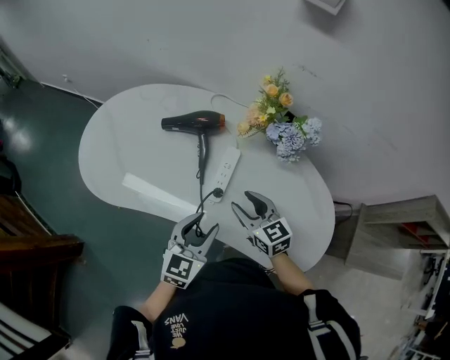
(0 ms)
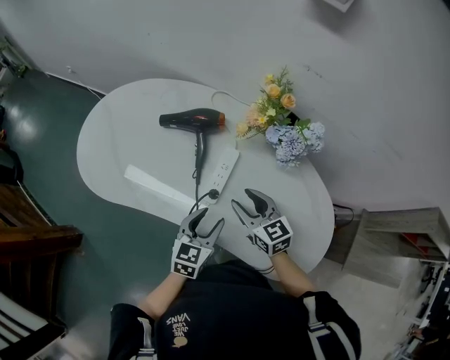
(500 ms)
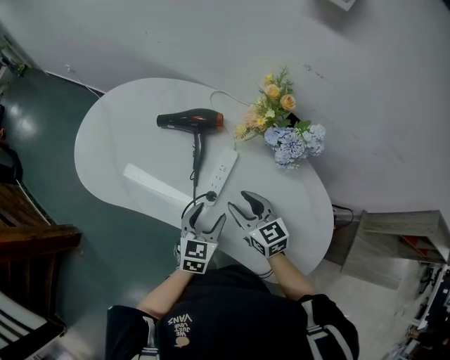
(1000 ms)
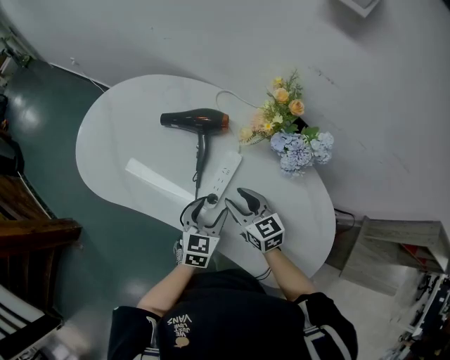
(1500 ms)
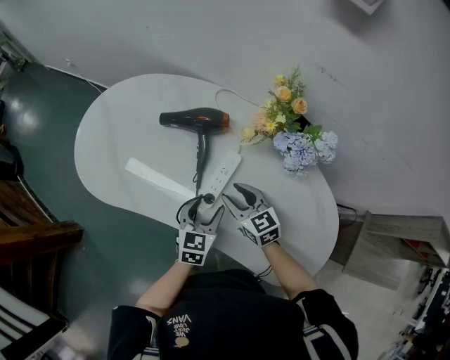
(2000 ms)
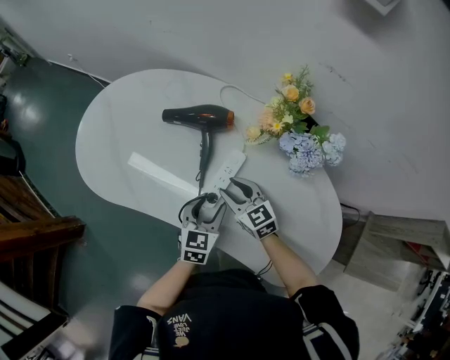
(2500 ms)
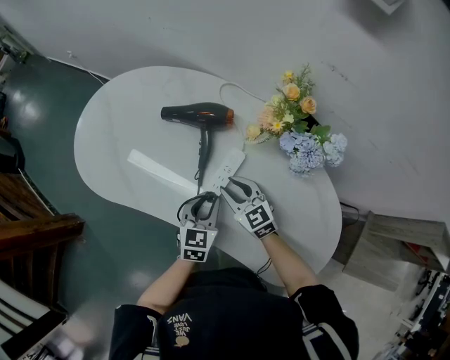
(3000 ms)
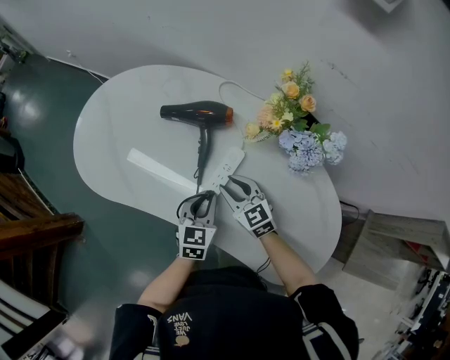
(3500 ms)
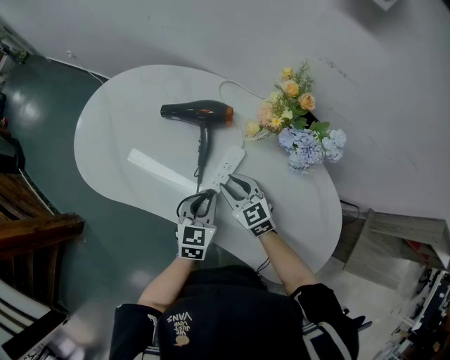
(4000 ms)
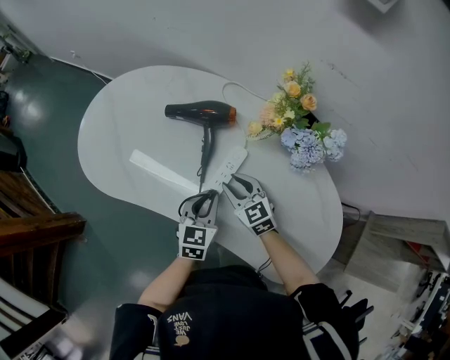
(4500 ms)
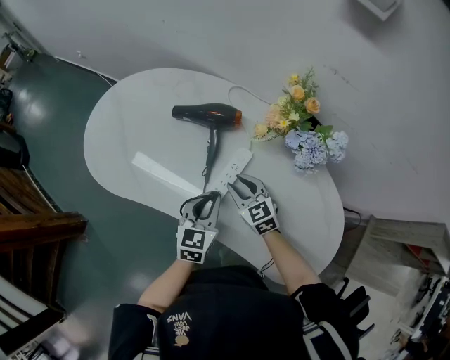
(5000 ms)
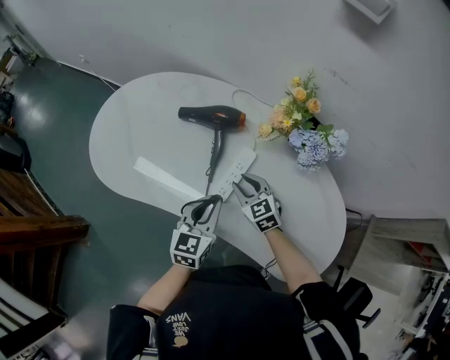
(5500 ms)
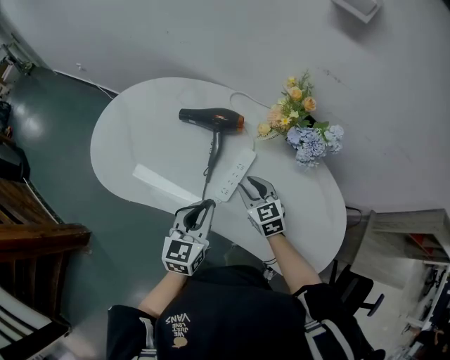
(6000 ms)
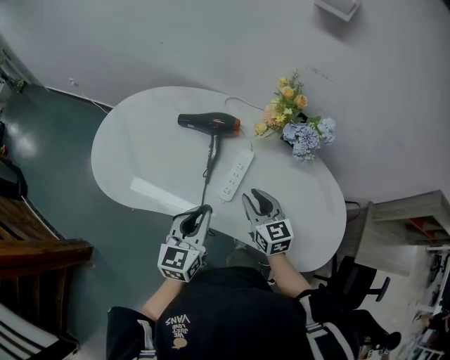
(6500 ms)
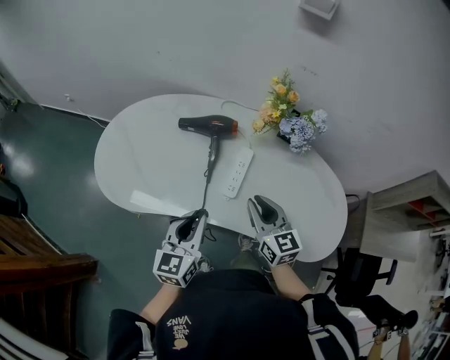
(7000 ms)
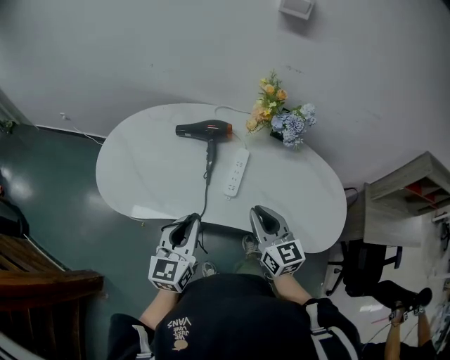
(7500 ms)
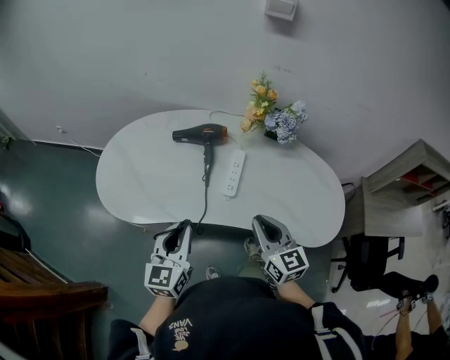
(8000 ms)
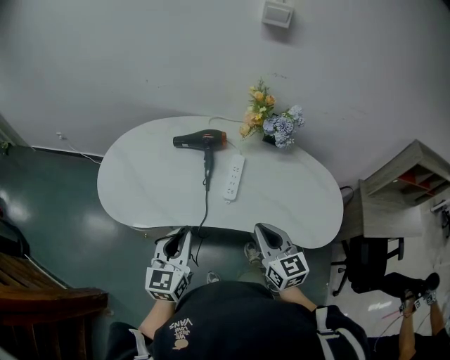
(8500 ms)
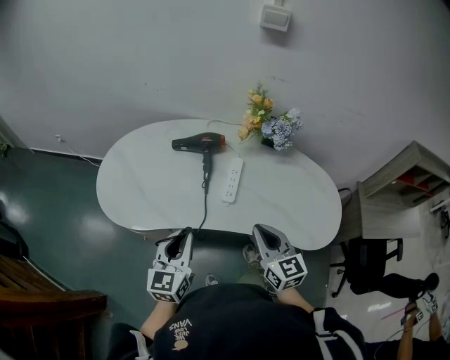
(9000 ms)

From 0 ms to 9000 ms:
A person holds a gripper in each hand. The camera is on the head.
From 0 ms to 2000 ms: The right gripper travels forward and downward by some 10 cm. Meanwhile the left gripper is displaced downward and forward by some 15 cm, and opens its fingers.
From 2000 ms to 4500 ms: The left gripper closes.
From 4500 ms to 7000 ms: The left gripper is displaced upward, to the left and backward by roughly 20 cm, and turns by roughly 20 degrees. Meanwhile the right gripper goes some 20 cm upward and backward, and swivels approximately 30 degrees.
From 7000 ms to 9000 ms: The left gripper is displaced backward and to the left by some 10 cm. The right gripper is displaced backward by some 10 cm.

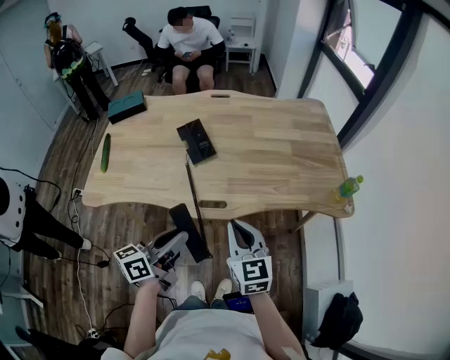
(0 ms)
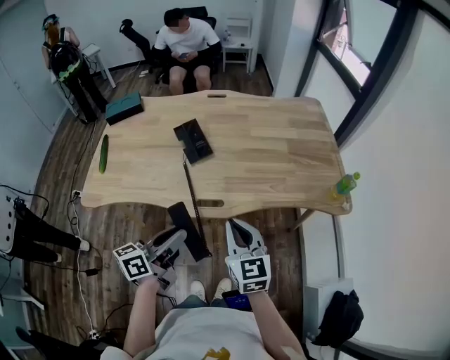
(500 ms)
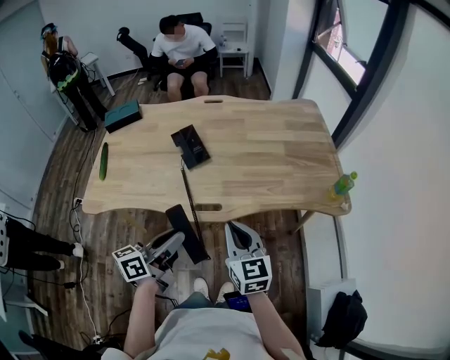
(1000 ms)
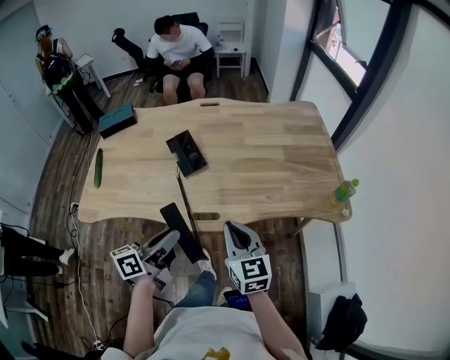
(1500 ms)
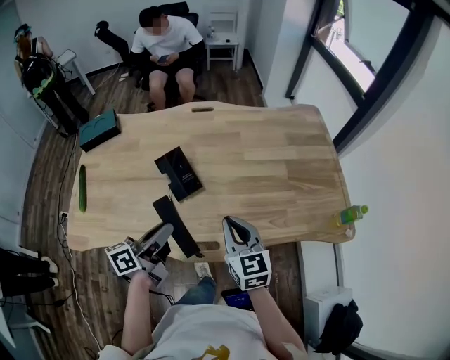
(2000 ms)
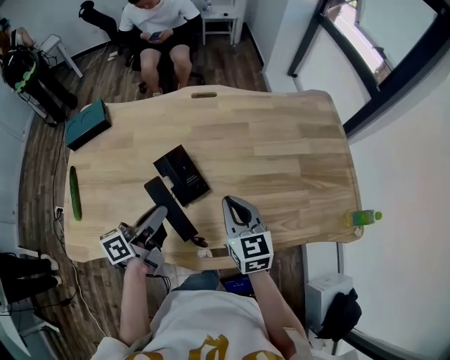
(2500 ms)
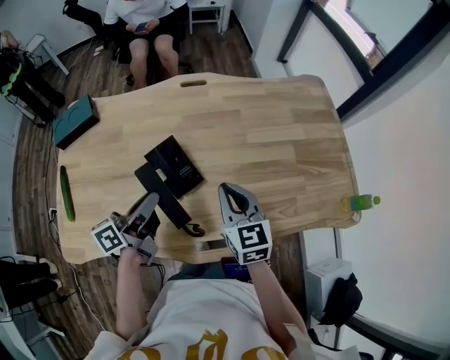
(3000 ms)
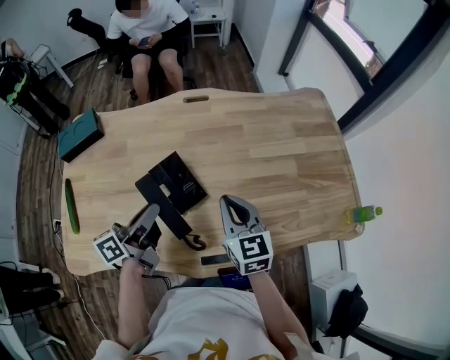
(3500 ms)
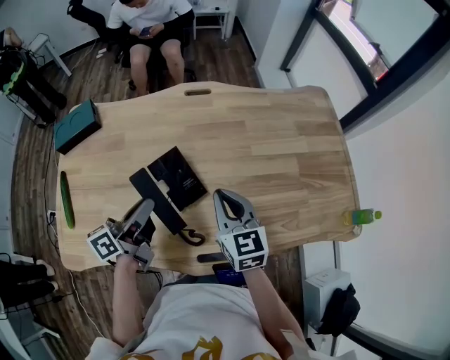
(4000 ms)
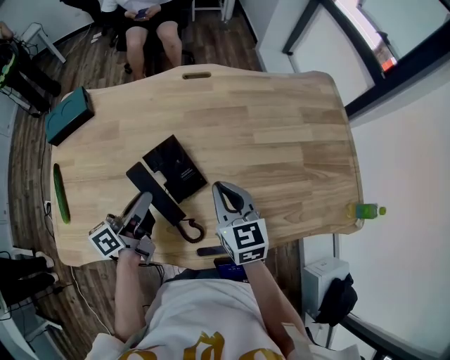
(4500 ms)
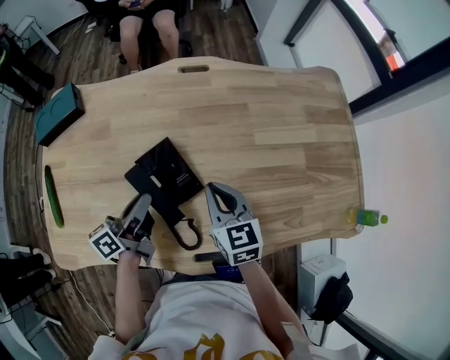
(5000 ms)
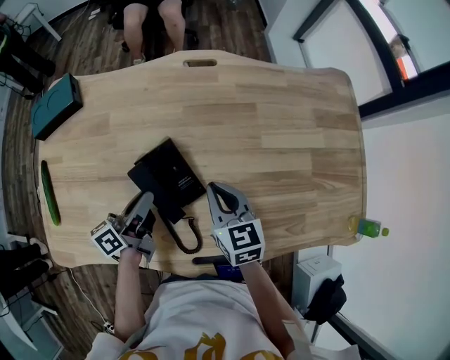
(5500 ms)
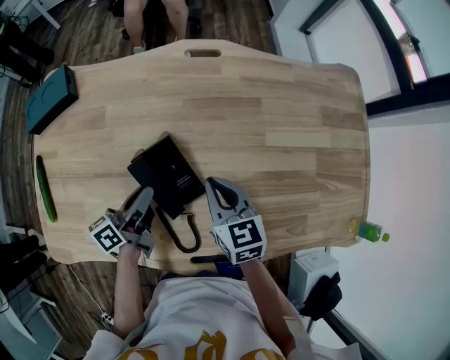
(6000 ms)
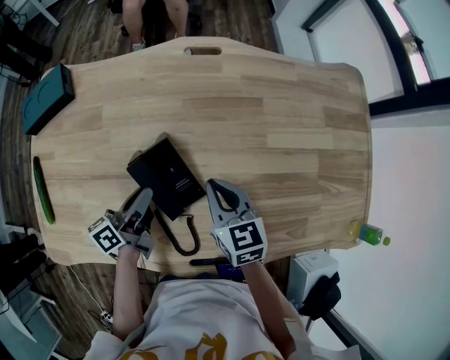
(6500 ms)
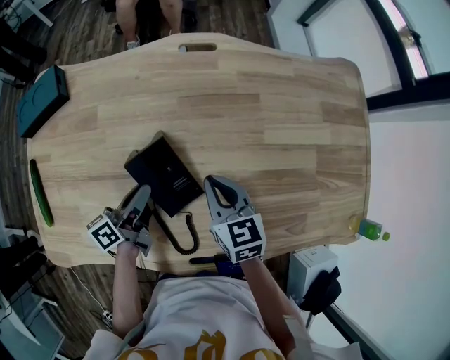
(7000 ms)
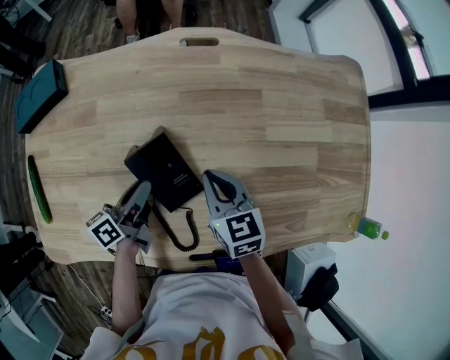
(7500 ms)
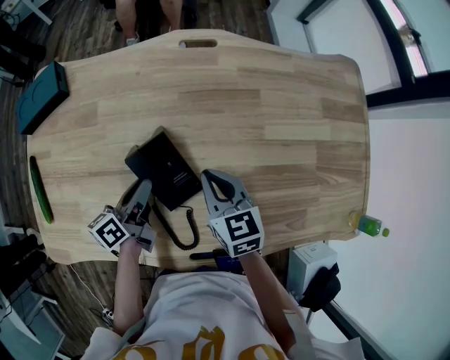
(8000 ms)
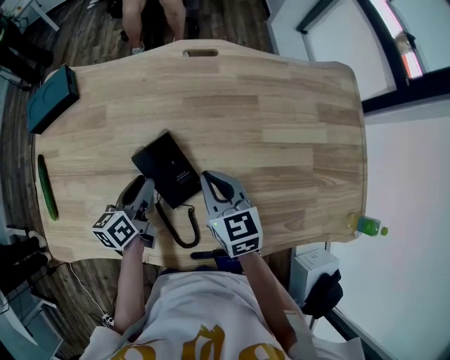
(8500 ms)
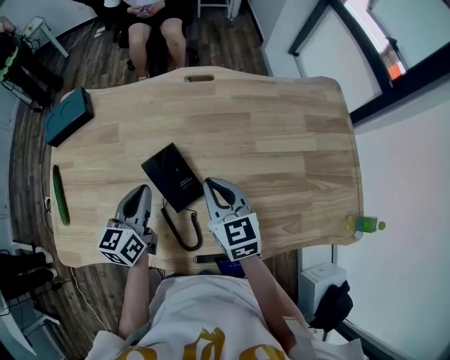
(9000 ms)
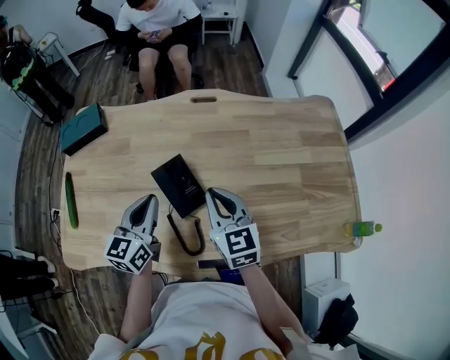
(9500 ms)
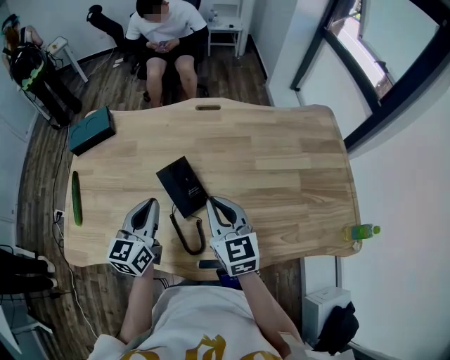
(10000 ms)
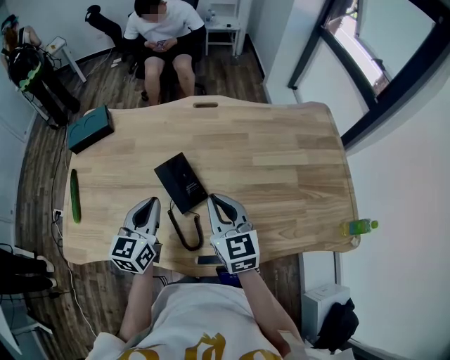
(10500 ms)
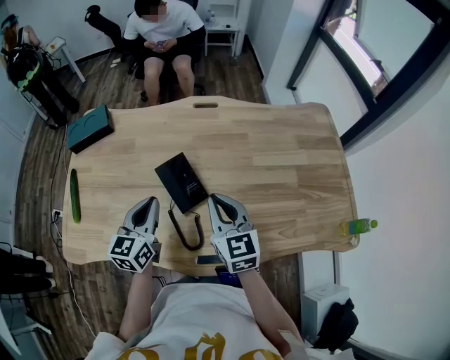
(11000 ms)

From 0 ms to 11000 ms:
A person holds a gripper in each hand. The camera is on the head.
From 0 ms to 2000 ms: The grippers both shift forward by approximately 20 cm.
From 2000 ms to 3500 ms: The two grippers go some 15 cm forward and to the left.
From 3500 ms to 5500 ms: The two grippers go some 10 cm downward and forward.
From 5500 ms to 7500 ms: The left gripper ends up roughly 5 cm from where it was.
From 7500 ms to 9000 ms: The grippers both shift upward by roughly 10 cm. The left gripper swivels about 40 degrees.
From 9000 ms to 11000 ms: The left gripper shifts some 5 cm backward, while the right gripper goes approximately 10 cm backward and upward.

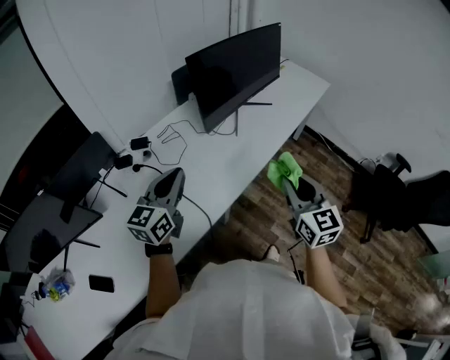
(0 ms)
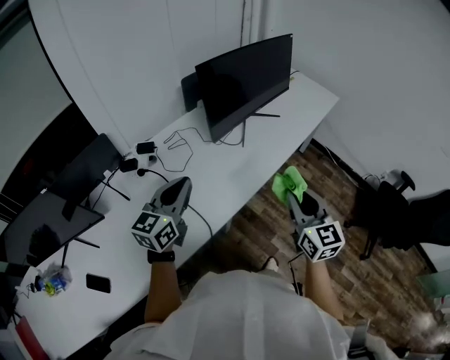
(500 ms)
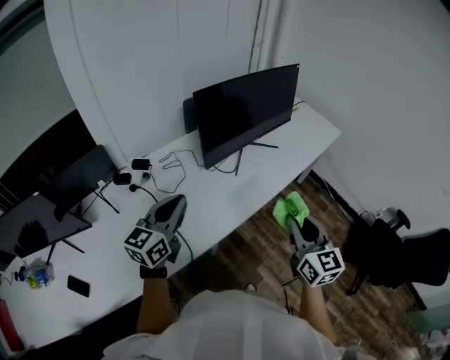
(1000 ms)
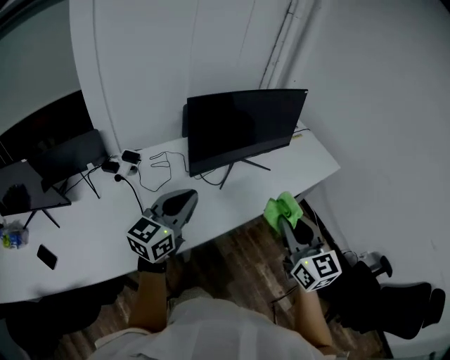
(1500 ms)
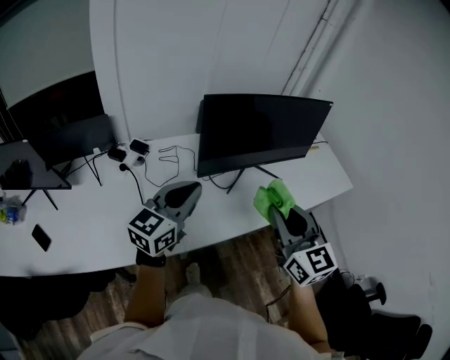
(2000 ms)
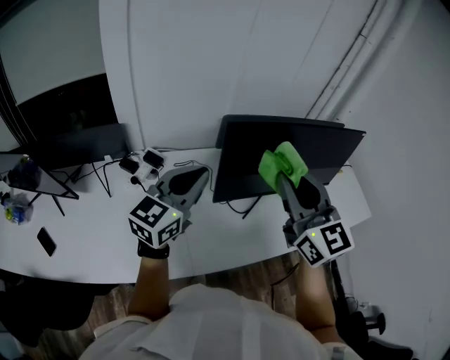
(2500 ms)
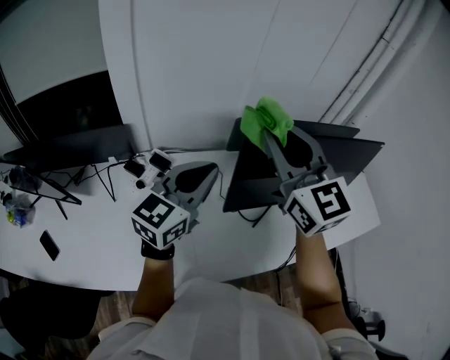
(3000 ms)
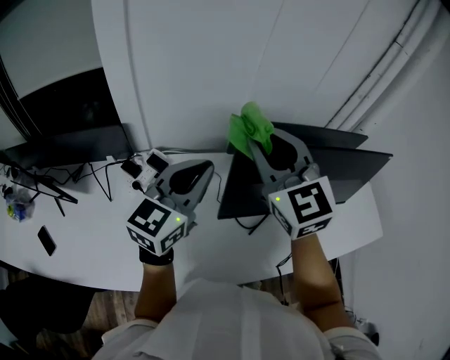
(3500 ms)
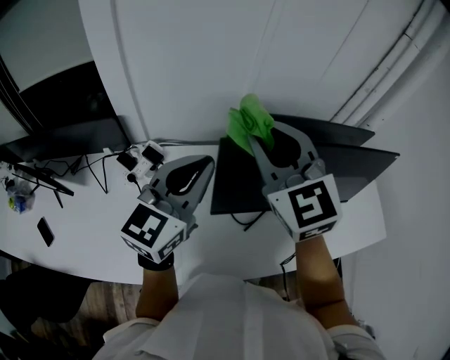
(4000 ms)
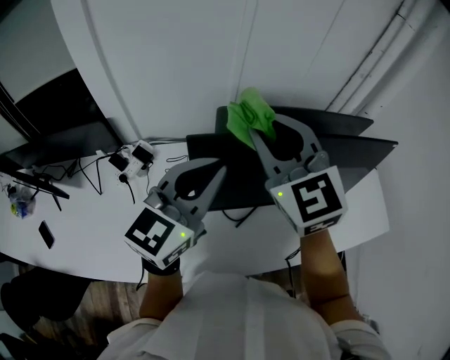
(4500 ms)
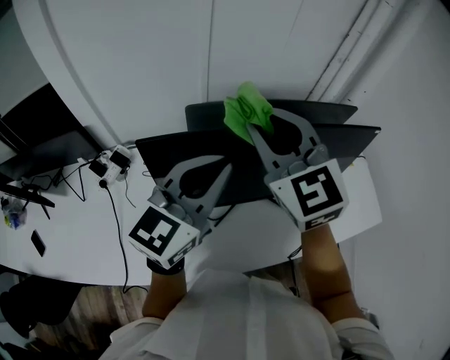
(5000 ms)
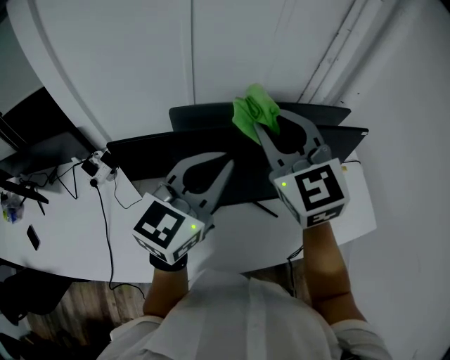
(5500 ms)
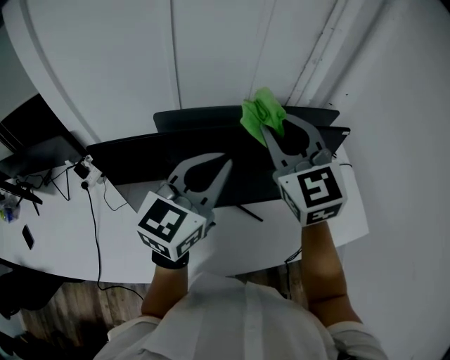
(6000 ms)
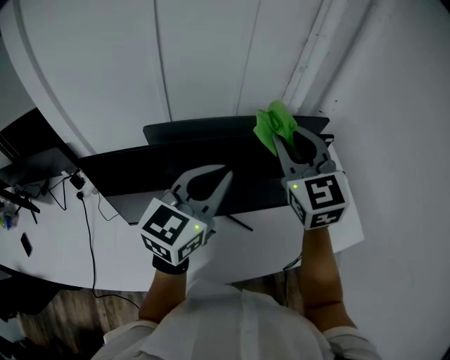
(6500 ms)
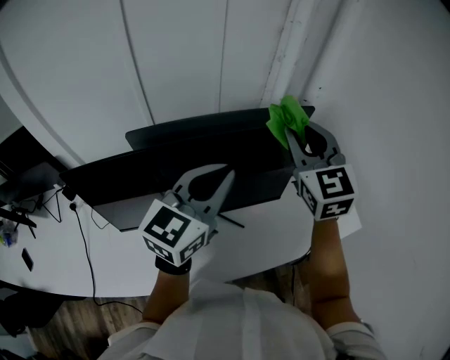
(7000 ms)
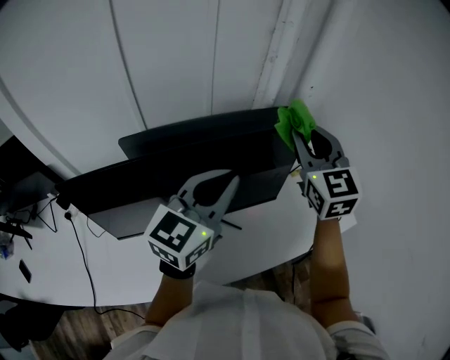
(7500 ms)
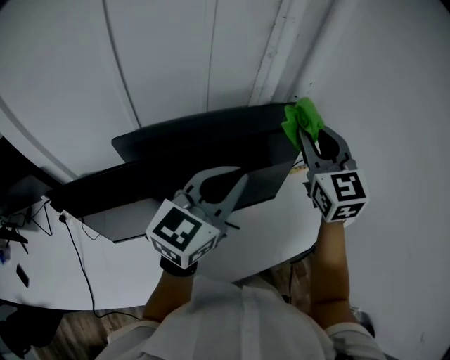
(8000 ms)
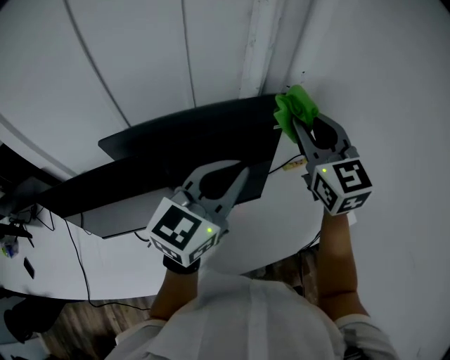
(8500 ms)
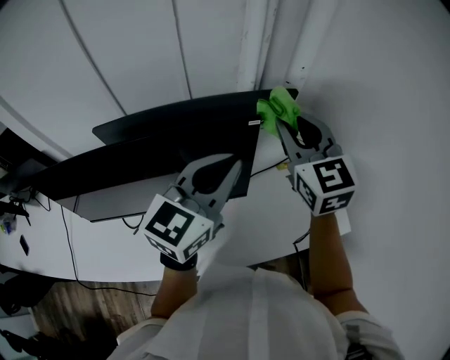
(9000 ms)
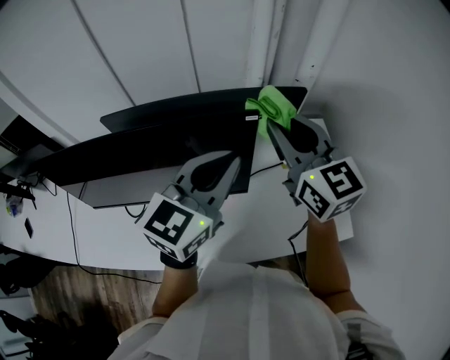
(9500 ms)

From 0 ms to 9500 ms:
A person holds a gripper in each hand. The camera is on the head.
From 0 ms to 2000 ms: The right gripper is displaced forward and upward by some 20 cm, and turns by roughly 30 degrees. The left gripper is displaced to the right and forward by approximately 20 cm.
From 2000 ms to 4000 ms: The right gripper shifts roughly 35 cm forward and to the left, and changes its angle by approximately 30 degrees. The left gripper moves forward, roughly 20 cm.
From 4000 ms to 5500 ms: Both grippers travel together to the right, roughly 25 cm.
From 5500 ms to 7500 ms: The right gripper moves to the right, approximately 25 cm, and rotates about 20 degrees. The left gripper shifts some 15 cm to the right.
From 7500 ms to 9500 ms: The right gripper travels to the right by approximately 5 cm, and rotates roughly 30 degrees; the left gripper shifts some 15 cm to the right and forward.
